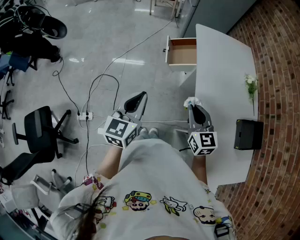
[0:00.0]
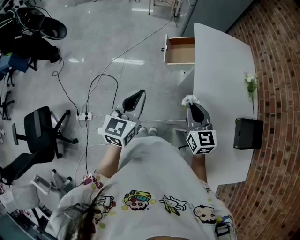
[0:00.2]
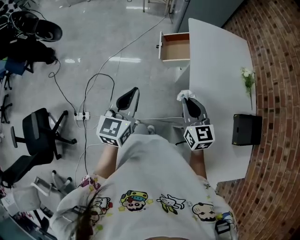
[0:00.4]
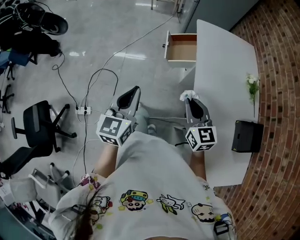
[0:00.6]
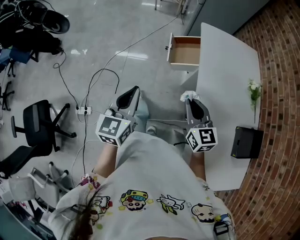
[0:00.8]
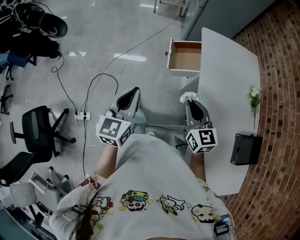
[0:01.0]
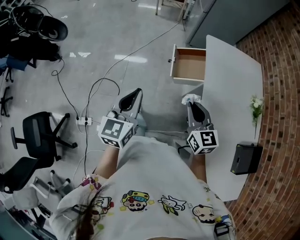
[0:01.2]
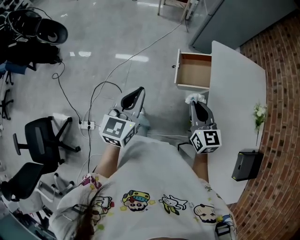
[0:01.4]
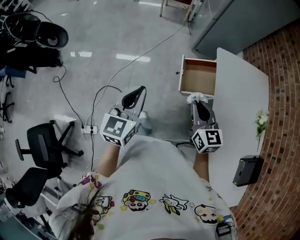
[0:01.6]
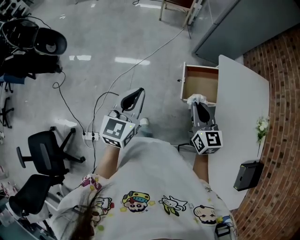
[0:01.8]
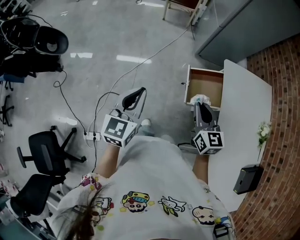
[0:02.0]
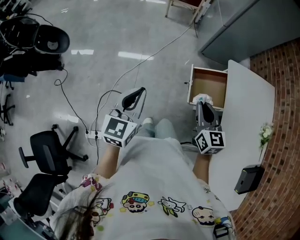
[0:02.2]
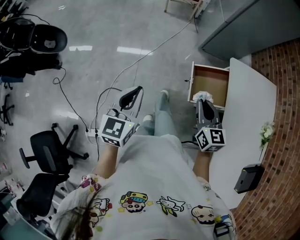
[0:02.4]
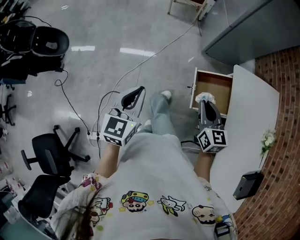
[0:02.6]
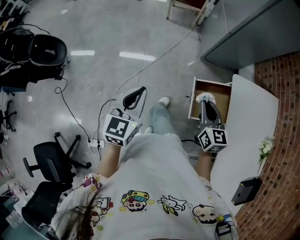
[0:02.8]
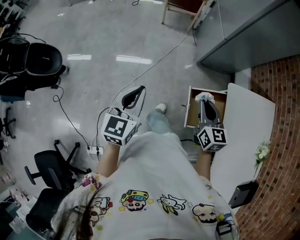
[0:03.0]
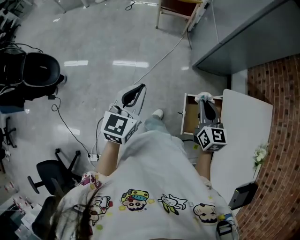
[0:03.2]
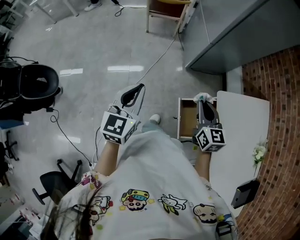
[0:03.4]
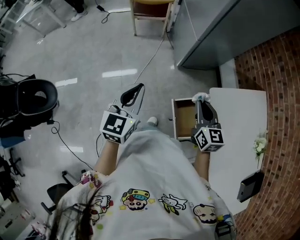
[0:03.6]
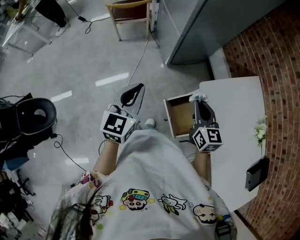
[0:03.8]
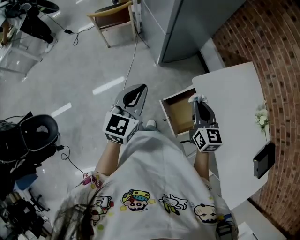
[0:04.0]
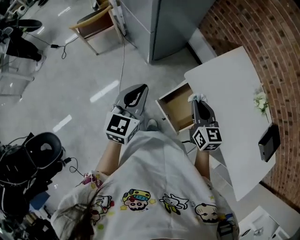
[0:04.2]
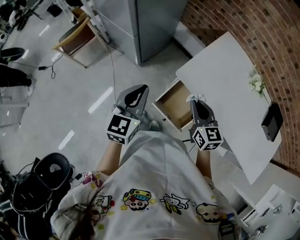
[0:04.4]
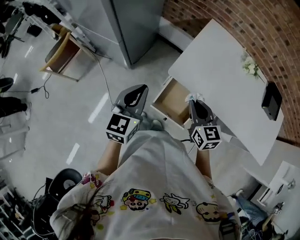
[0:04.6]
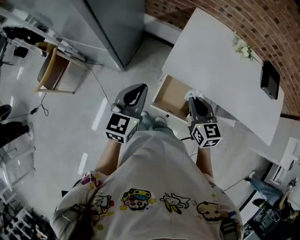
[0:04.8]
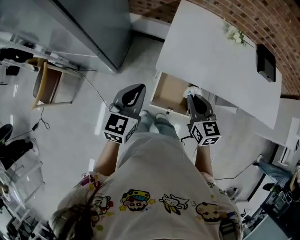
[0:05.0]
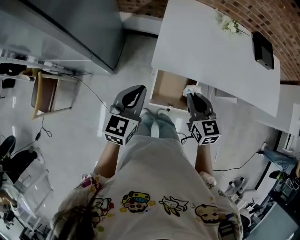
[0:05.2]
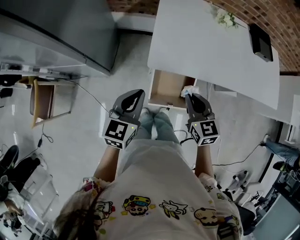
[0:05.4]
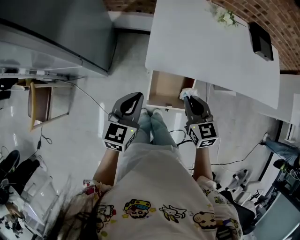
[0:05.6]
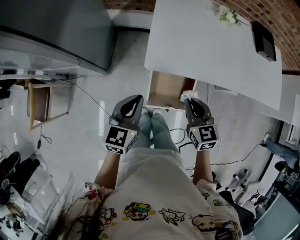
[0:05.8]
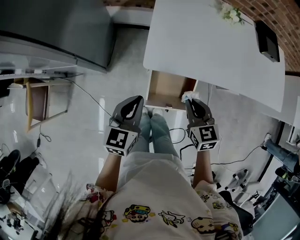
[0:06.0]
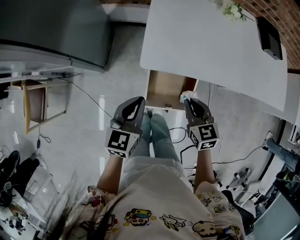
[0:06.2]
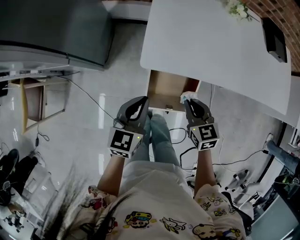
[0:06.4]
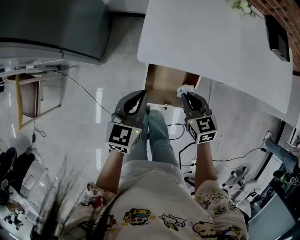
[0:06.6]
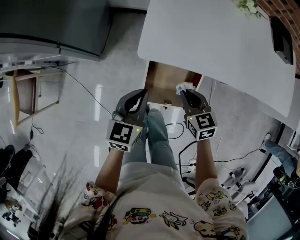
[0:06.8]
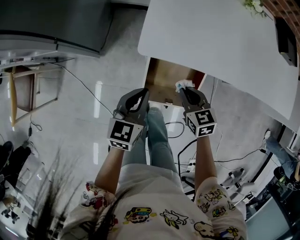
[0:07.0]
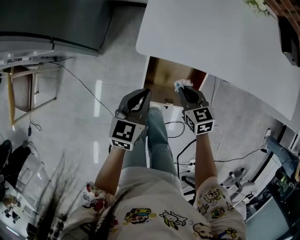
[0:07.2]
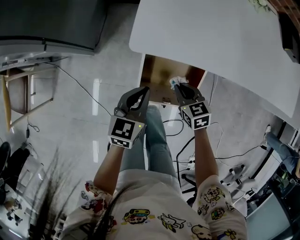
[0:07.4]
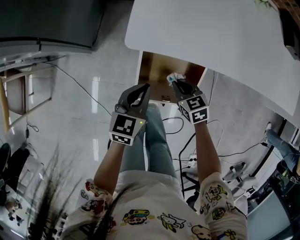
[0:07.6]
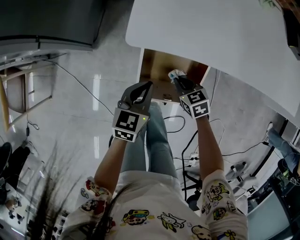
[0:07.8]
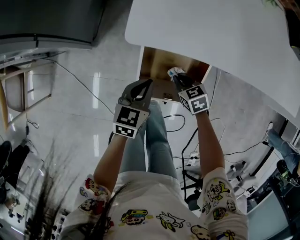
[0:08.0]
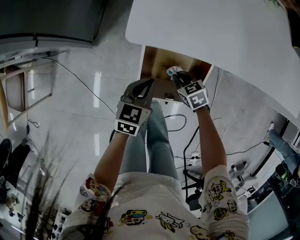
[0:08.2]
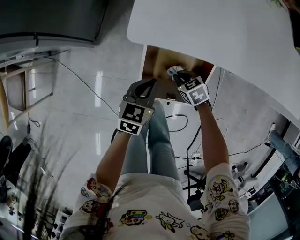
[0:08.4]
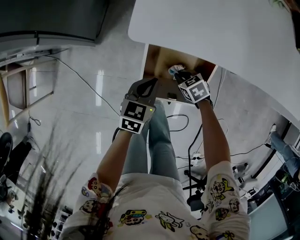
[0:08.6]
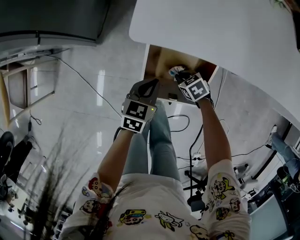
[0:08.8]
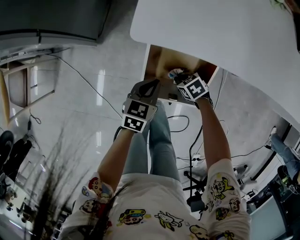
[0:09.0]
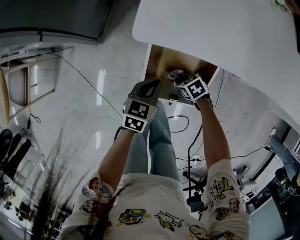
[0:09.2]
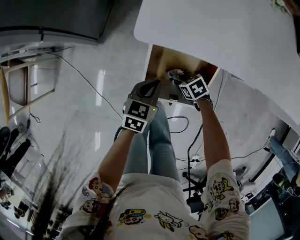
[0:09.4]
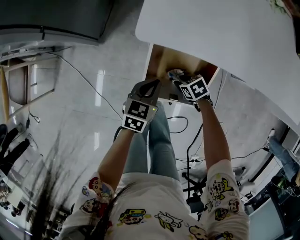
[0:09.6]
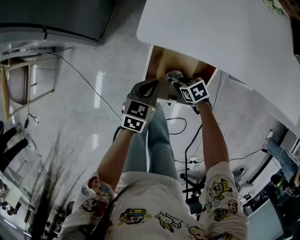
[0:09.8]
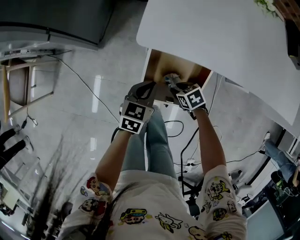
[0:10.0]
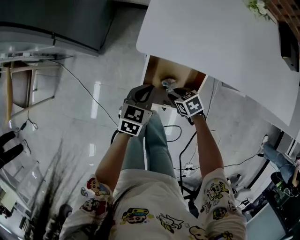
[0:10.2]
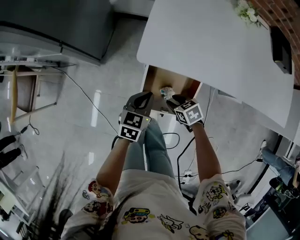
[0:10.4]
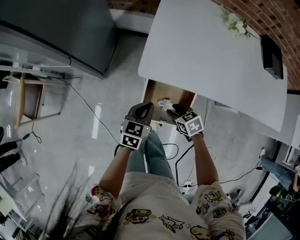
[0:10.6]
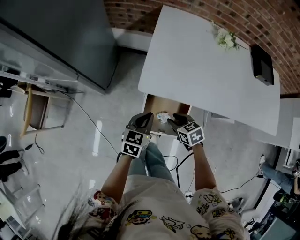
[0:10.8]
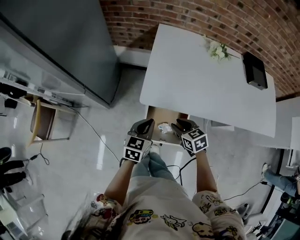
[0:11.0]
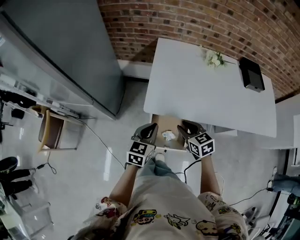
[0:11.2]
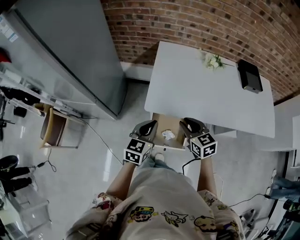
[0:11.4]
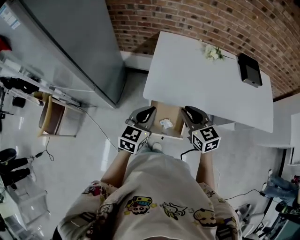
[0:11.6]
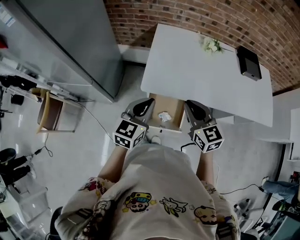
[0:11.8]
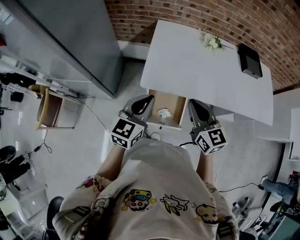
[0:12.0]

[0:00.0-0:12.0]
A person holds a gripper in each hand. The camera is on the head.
0:00.0 to 0:01.6: Both grippers move forward, about 30 cm.
0:01.6 to 0:03.0: Both grippers travel together forward, some 30 cm.
0:03.0 to 0:04.4: The left gripper moves roughly 35 cm, and rotates approximately 50 degrees. Meanwhile the right gripper moves approximately 20 cm, and swivels some 40 degrees.
0:04.4 to 0:06.0: The two grippers go roughly 10 cm downward. The left gripper changes its angle by about 40 degrees. The right gripper swivels roughly 30 degrees.
0:06.0 to 0:07.6: Both grippers move downward, approximately 25 cm. The right gripper changes its angle by approximately 20 degrees.
0:07.6 to 0:09.0: The left gripper goes approximately 10 cm downward. Meanwhile the right gripper moves downward, approximately 10 cm, and turns by approximately 30 degrees.
0:09.0 to 0:10.4: The two grippers go about 10 cm upward. The right gripper opens its fingers.
0:10.4 to 0:12.0: Both grippers move upward, roughly 40 cm. The left gripper changes its angle by approximately 30 degrees; the right gripper tilts its fingers approximately 50 degrees upward, and closes its fingers.

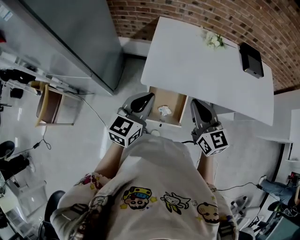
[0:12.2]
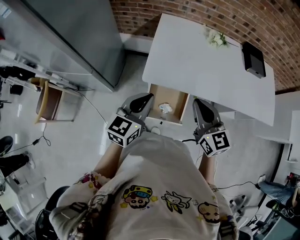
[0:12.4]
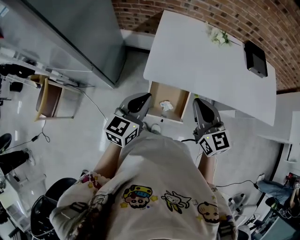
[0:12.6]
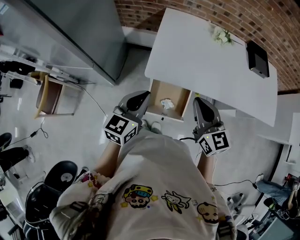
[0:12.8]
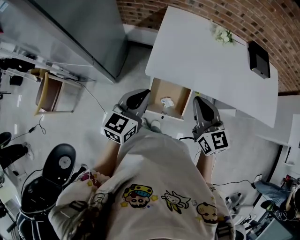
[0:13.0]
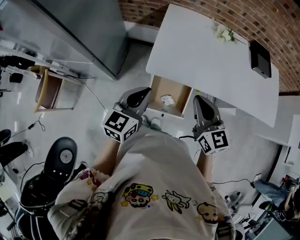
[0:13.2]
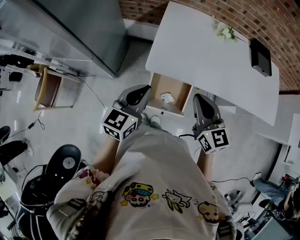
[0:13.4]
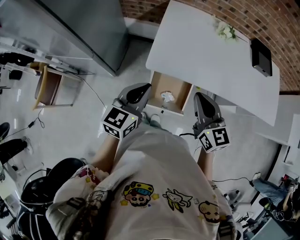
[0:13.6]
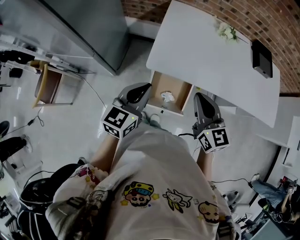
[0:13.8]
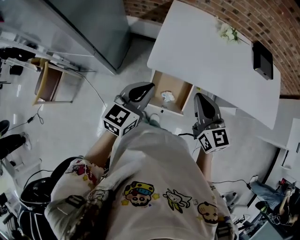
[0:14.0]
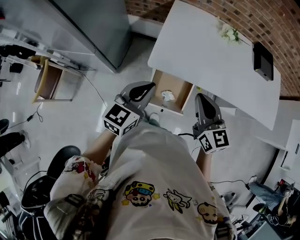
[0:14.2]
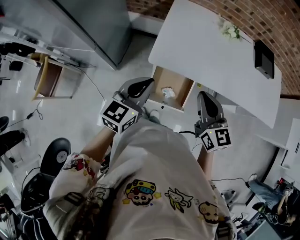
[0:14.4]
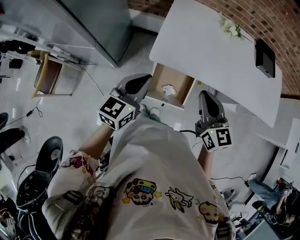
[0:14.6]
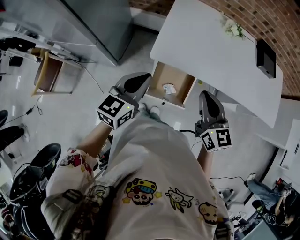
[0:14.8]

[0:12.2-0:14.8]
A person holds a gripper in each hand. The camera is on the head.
0:12.2 to 0:14.8: The grippers stay close to where they were, moving slightly.

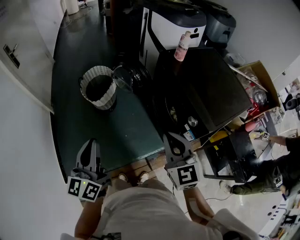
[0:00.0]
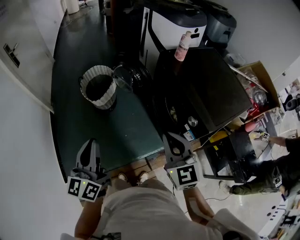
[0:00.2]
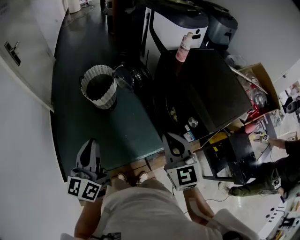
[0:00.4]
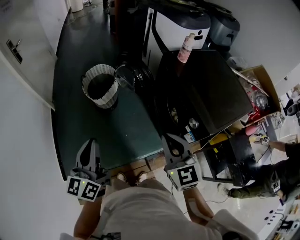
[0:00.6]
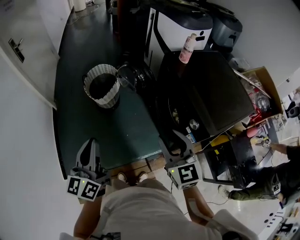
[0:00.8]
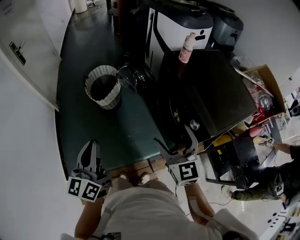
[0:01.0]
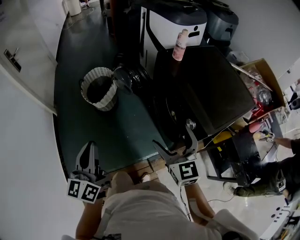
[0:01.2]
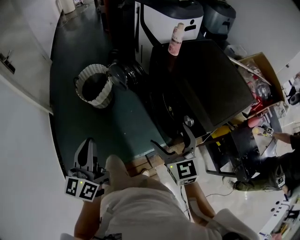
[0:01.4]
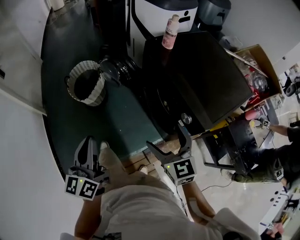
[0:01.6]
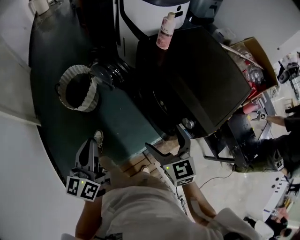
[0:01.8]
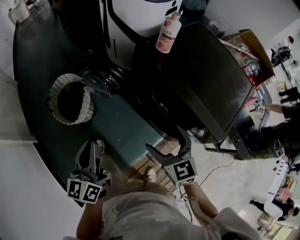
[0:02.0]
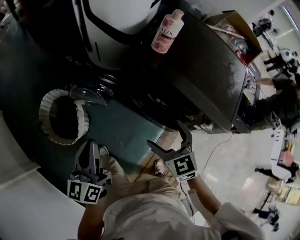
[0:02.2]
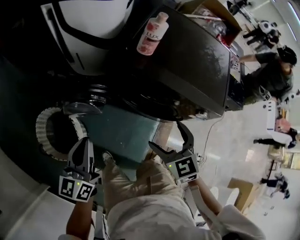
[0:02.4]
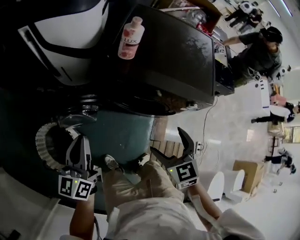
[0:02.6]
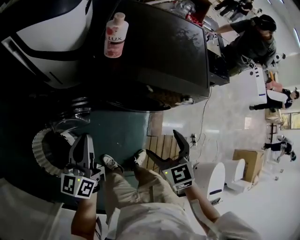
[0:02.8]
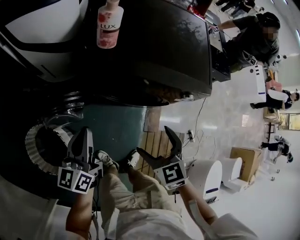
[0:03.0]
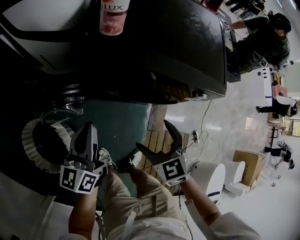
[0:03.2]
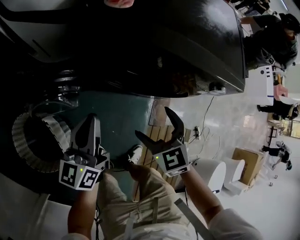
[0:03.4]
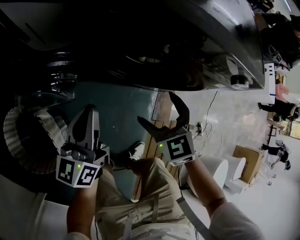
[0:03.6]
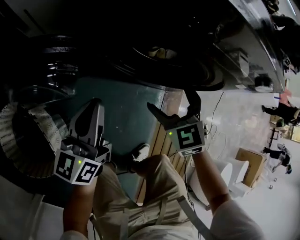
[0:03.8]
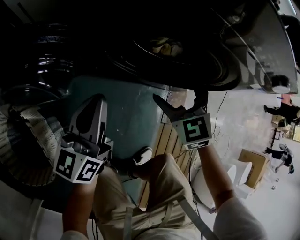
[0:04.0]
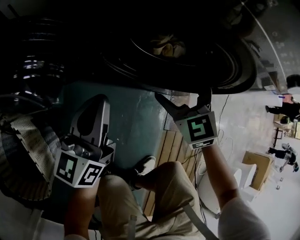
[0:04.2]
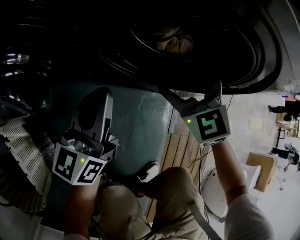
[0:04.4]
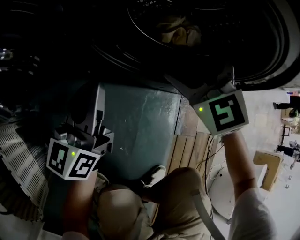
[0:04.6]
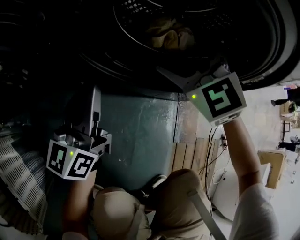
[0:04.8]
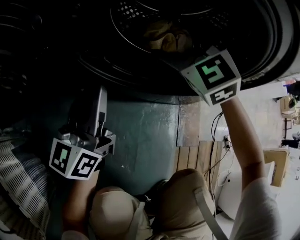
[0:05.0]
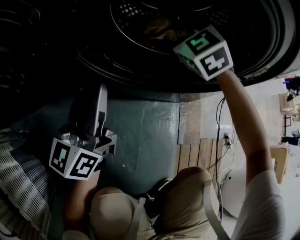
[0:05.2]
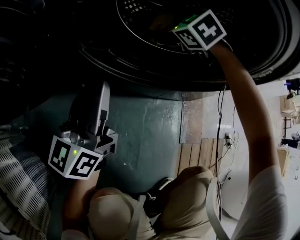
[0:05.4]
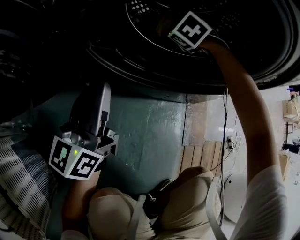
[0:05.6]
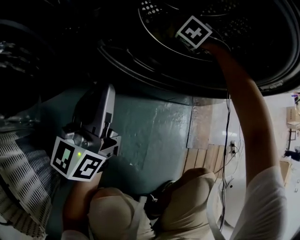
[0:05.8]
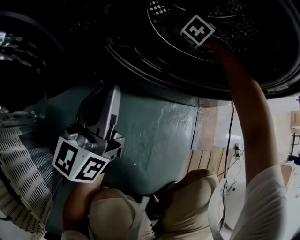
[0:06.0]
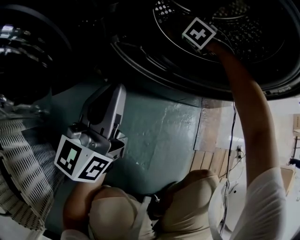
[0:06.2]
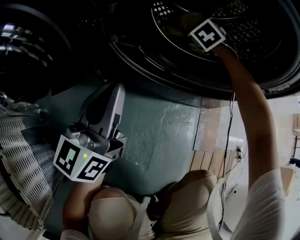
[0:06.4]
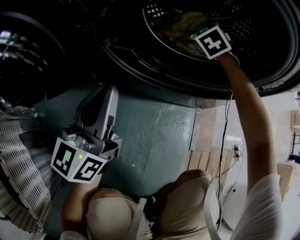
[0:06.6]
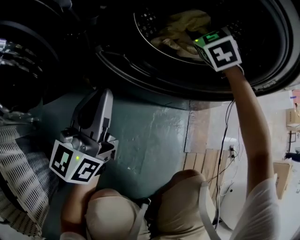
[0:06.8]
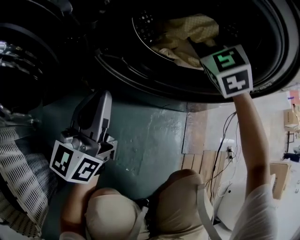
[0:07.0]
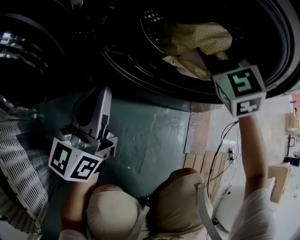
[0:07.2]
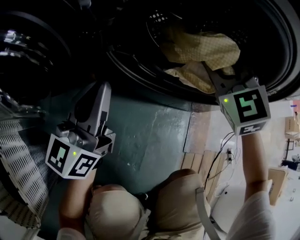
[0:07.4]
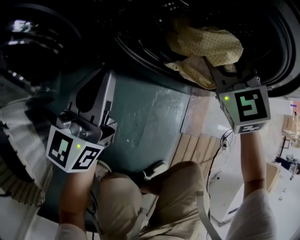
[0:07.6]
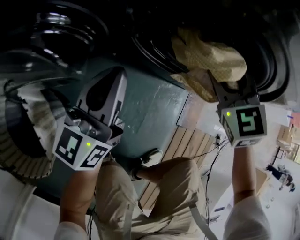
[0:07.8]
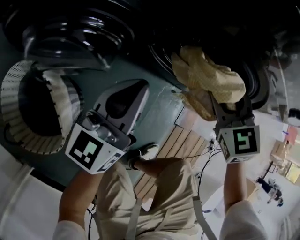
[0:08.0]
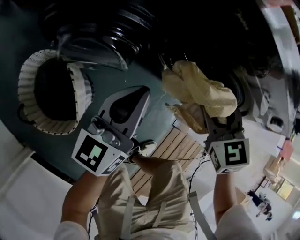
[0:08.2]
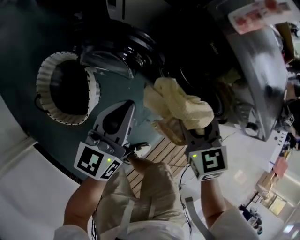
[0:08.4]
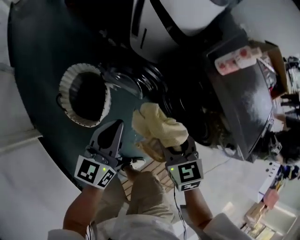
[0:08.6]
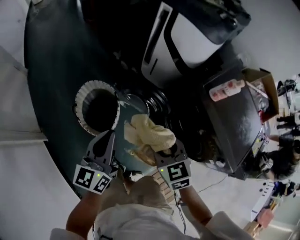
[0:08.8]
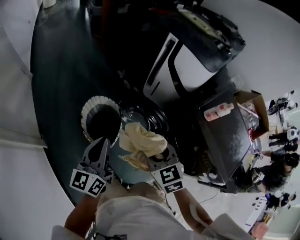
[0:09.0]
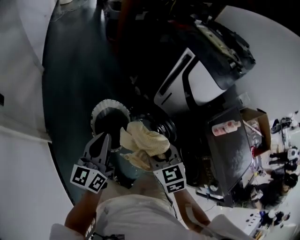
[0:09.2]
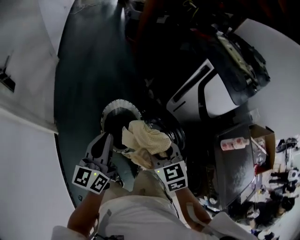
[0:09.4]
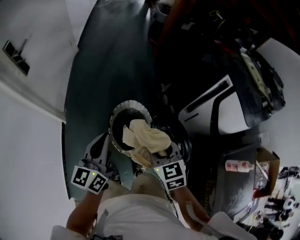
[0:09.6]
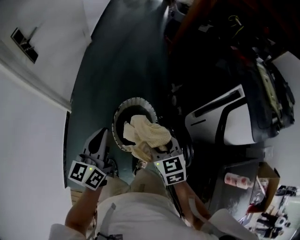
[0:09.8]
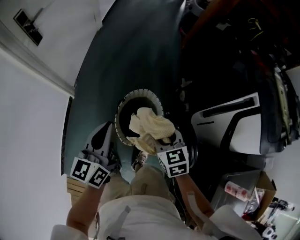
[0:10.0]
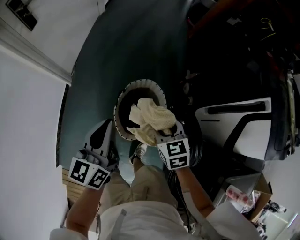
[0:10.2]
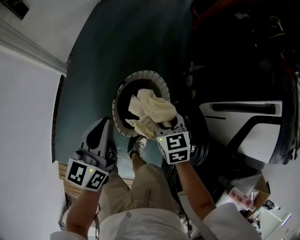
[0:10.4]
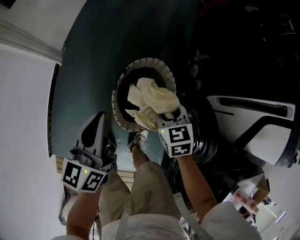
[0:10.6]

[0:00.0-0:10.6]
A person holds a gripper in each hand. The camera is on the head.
0:00.0 to 0:01.6: The left gripper heads forward and to the right, covering about 10 cm. Meanwhile the right gripper goes about 10 cm downward and to the right, and opens up.
0:01.6 to 0:03.0: The left gripper moves up and down over some 10 cm, changing direction 2 times, and turns by about 60 degrees. The right gripper moves up and down over roughly 5 cm, changing direction 2 times, and rotates some 50 degrees.
0:03.0 to 0:04.6: The right gripper is displaced downward and forward by about 40 cm, and rotates roughly 30 degrees, while the left gripper goes some 50 cm downward.
0:04.6 to 0:06.0: The right gripper heads forward and downward, covering some 30 cm, and tips its fingers downward by approximately 30 degrees.
0:06.0 to 0:07.6: The right gripper is displaced upward and backward by about 30 cm, changes its angle by roughly 40 degrees, and closes. Meanwhile the left gripper heads upward, covering approximately 5 cm.
0:07.6 to 0:09.0: The pair of grippers is taken roughly 40 cm. Both grippers move upward, approximately 50 cm. The right gripper rotates some 50 degrees, while the left gripper turns by about 50 degrees.
0:09.0 to 0:10.6: The right gripper ends up approximately 40 cm from where it was, and turns by roughly 30 degrees. Meanwhile the left gripper ends up roughly 30 cm from where it was, and rotates some 50 degrees.
